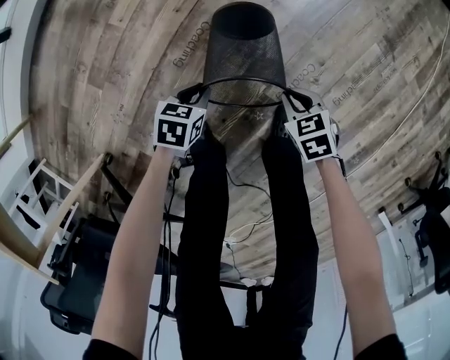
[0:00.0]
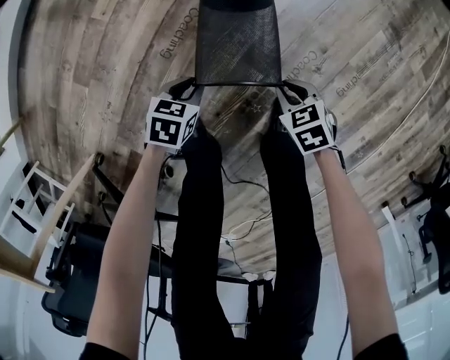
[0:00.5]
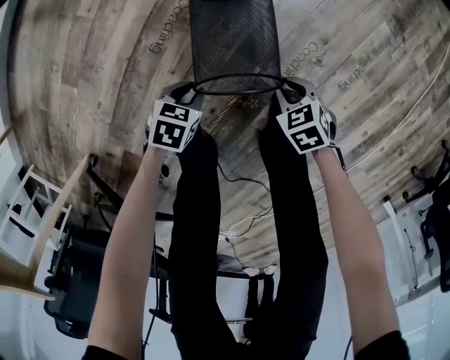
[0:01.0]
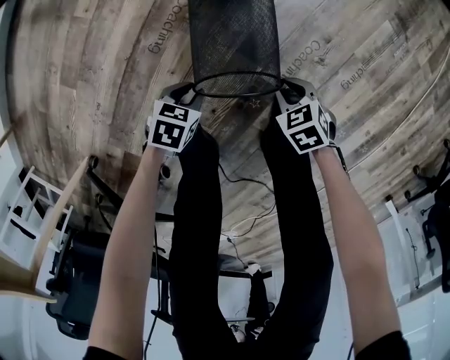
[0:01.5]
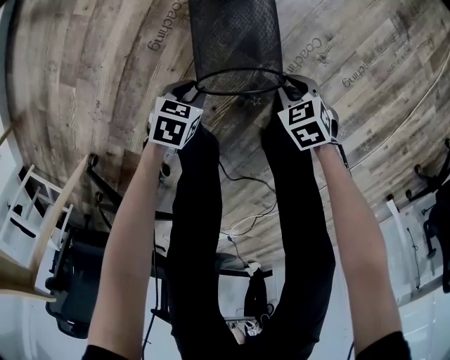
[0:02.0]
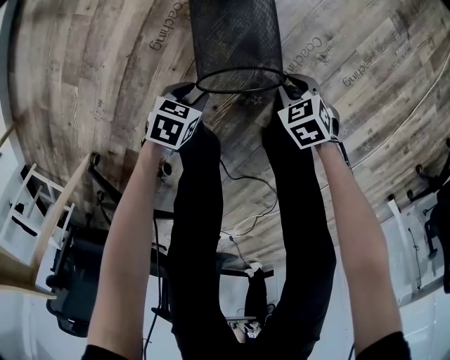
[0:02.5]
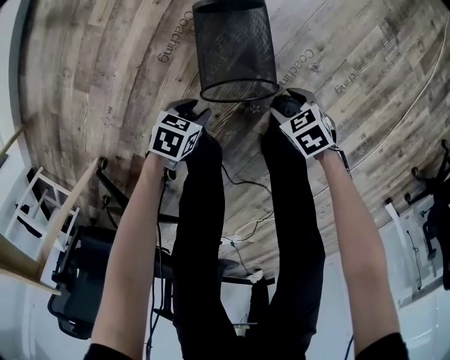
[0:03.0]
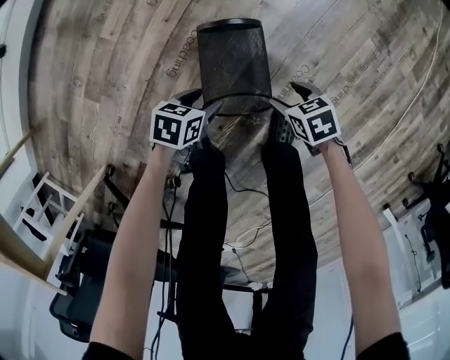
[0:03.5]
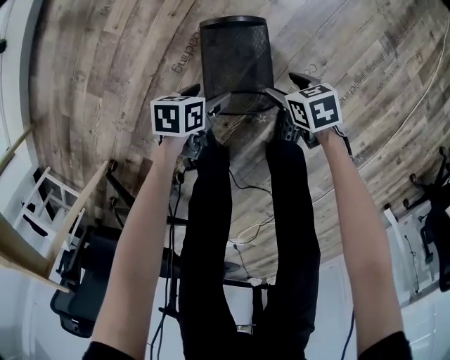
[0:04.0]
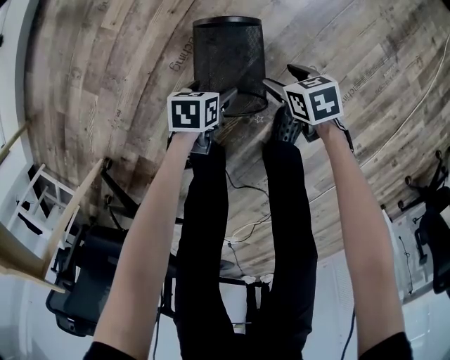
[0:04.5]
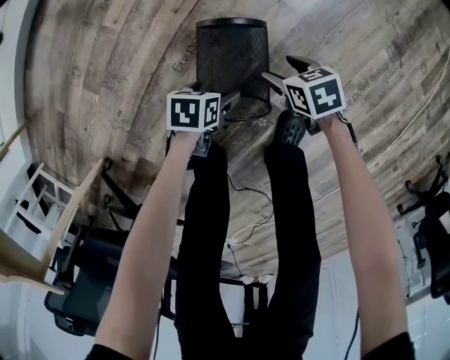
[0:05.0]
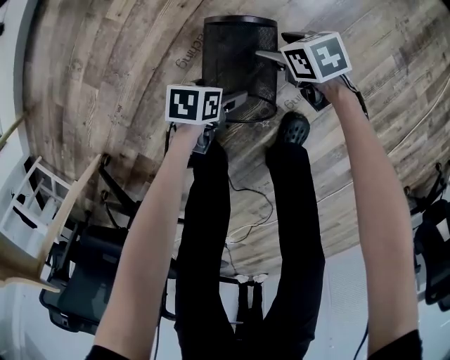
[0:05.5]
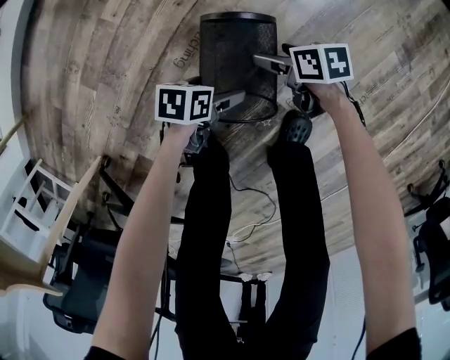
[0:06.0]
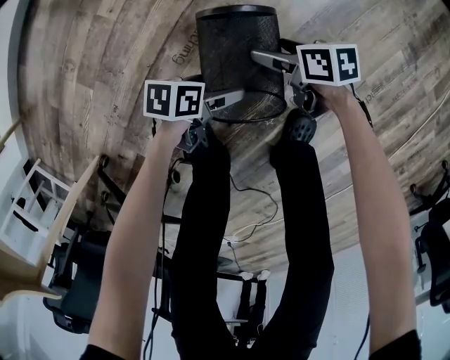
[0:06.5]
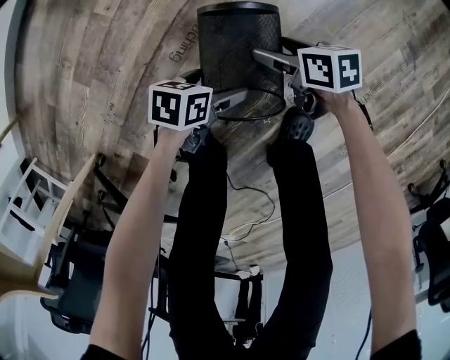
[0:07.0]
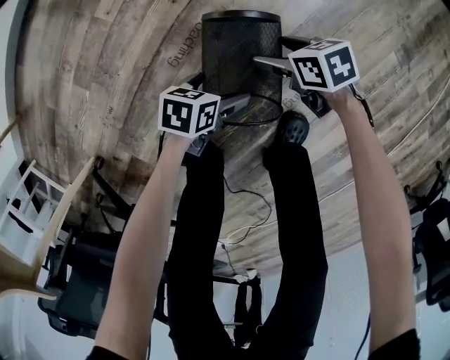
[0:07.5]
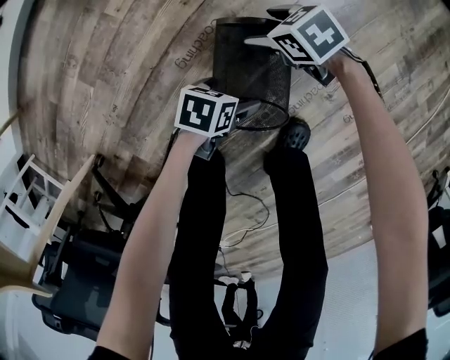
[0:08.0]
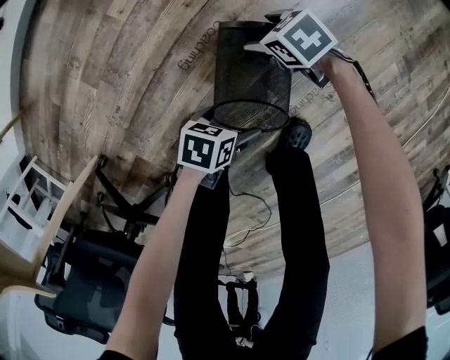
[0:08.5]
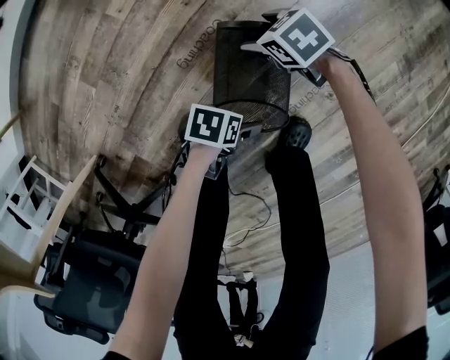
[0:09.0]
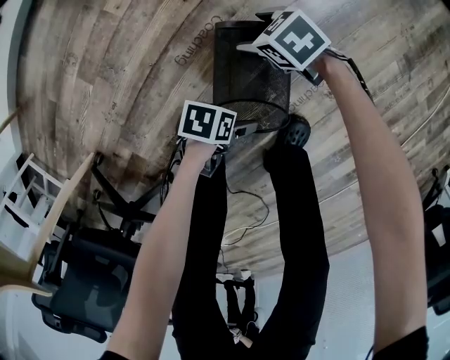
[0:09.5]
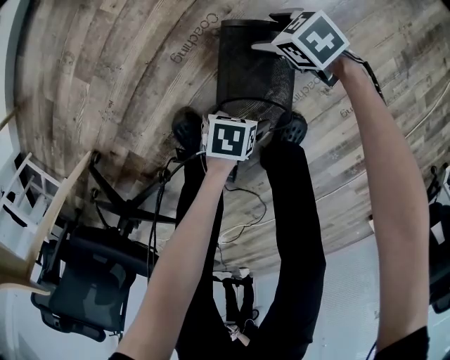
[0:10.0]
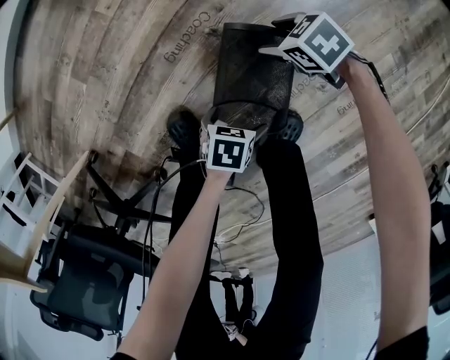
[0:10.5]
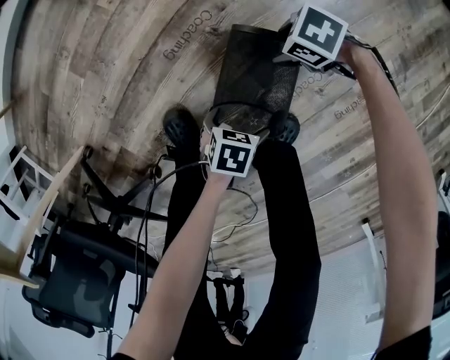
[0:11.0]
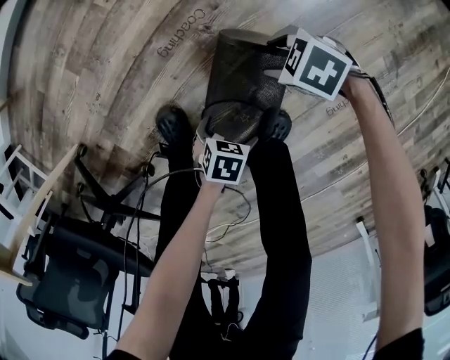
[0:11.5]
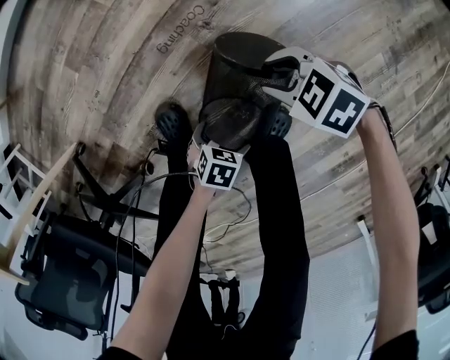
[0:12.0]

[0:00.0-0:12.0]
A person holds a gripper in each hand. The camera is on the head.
0:00.0 to 0:02.0: Both grippers move downward, some 10 cm.
0:02.0 to 0:04.0: The right gripper changes place by approximately 10 cm, swivels roughly 20 degrees, and opens its fingers; the left gripper changes place by approximately 10 cm, swivels roughly 30 degrees, and opens up.
0:04.0 to 0:06.0: The right gripper changes place by about 10 cm.
0:06.0 to 0:08.0: The right gripper ends up roughly 10 cm from where it was, and rotates around the line of its fingers by about 40 degrees, counterclockwise from behind.
0:08.0 to 0:10.0: The left gripper ends up approximately 10 cm from where it was.
0:10.0 to 0:12.0: The right gripper ends up some 15 cm from where it was, turns by some 20 degrees, and closes. The left gripper moves some 10 cm.

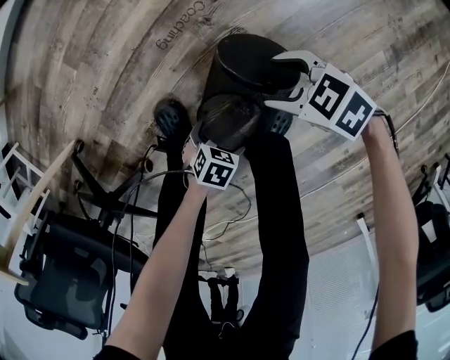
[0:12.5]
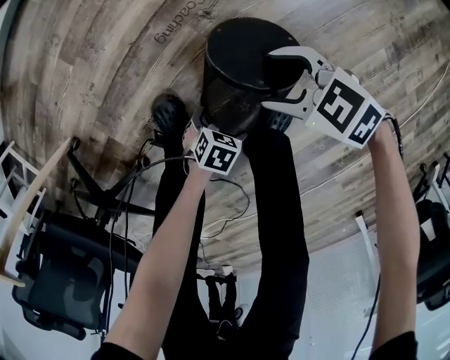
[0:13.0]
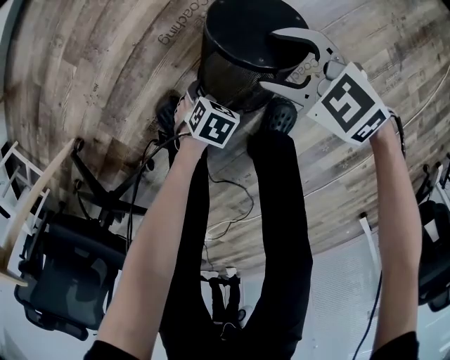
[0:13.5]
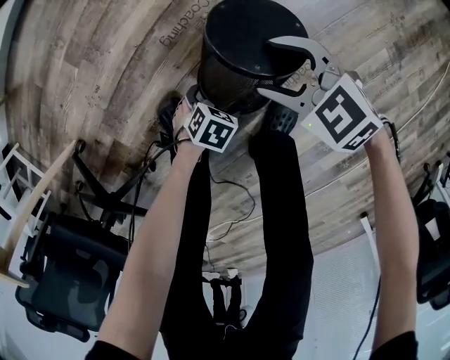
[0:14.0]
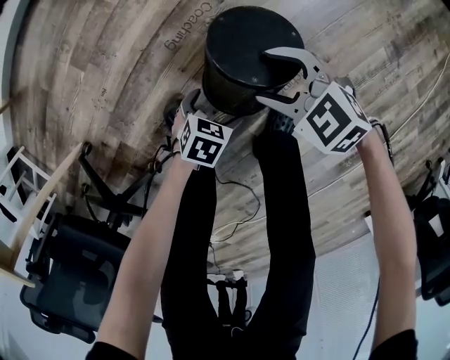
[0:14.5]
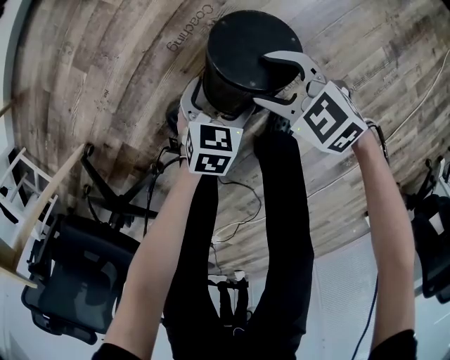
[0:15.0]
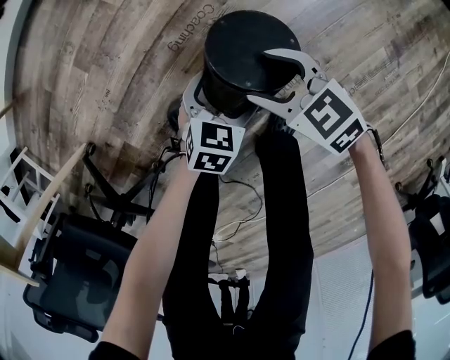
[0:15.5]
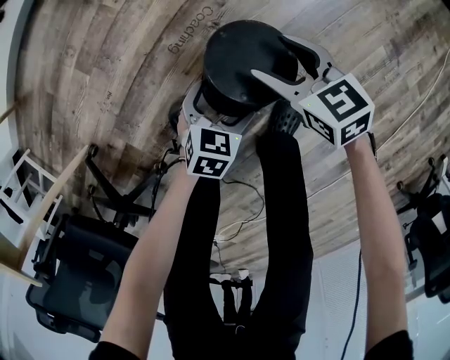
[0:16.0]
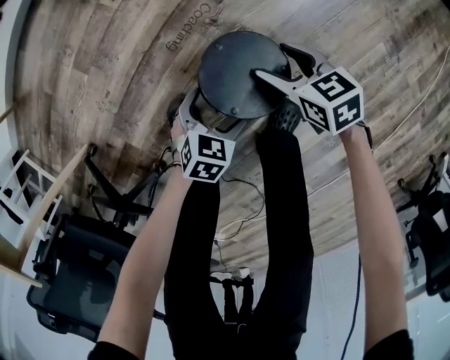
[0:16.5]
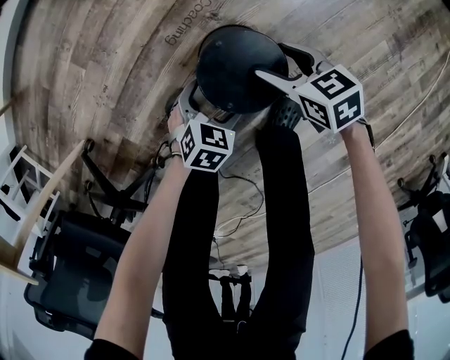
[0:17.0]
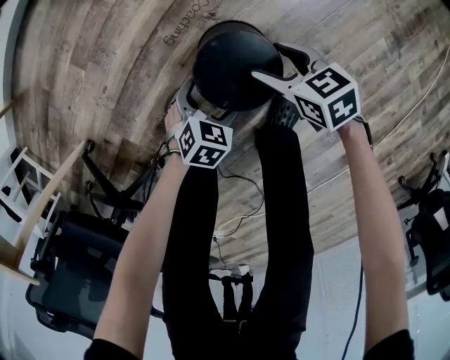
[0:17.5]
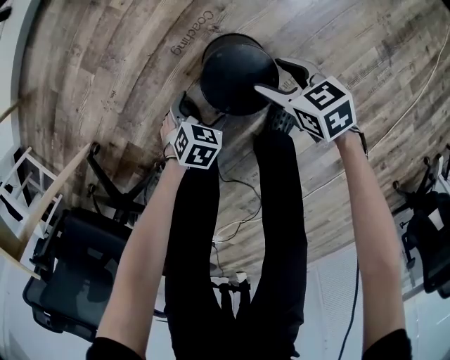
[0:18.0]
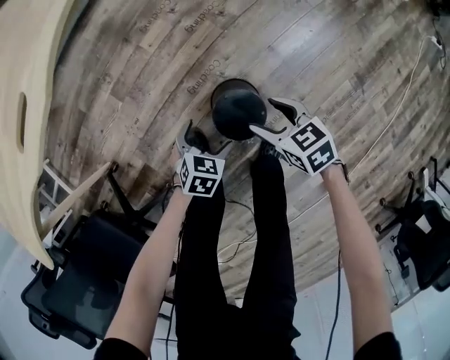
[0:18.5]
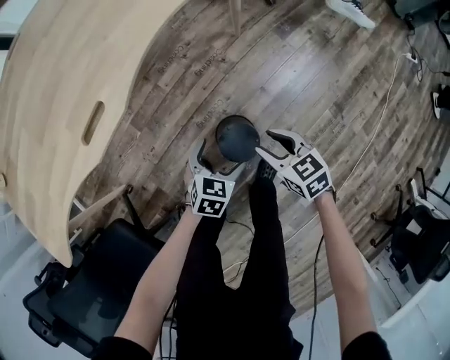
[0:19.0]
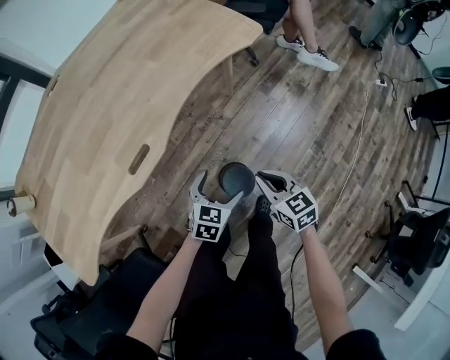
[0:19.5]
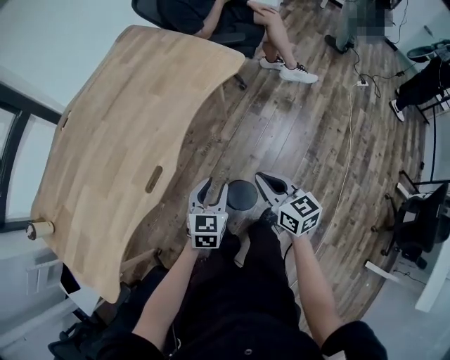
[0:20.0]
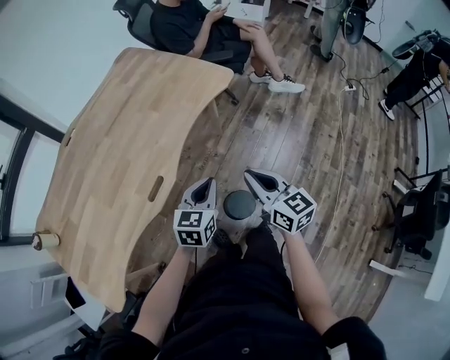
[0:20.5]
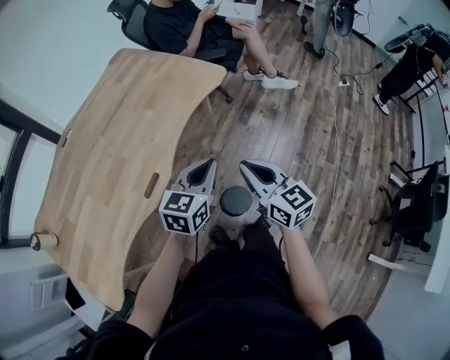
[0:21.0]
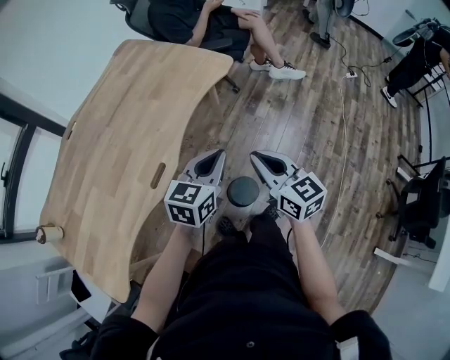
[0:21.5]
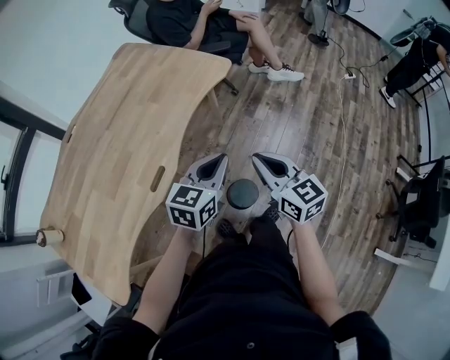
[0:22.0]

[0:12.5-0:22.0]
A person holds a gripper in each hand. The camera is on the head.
0:12.5 to 0:14.5: The left gripper ends up about 10 cm from where it was. Meanwhile the right gripper shifts by roughly 5 cm, and changes its angle by roughly 20 degrees.
0:14.5 to 0:16.5: The right gripper shifts by roughly 5 cm, and turns by approximately 40 degrees.
0:16.5 to 0:18.0: The left gripper changes place by roughly 5 cm.
0:18.0 to 0:20.0: Both grippers travel together upward, roughly 60 cm. The right gripper swivels roughly 50 degrees, and closes. Meanwhile the left gripper tilts its fingers roughly 40 degrees upward, and closes up.
0:20.0 to 0:22.0: Both grippers travel together upward, approximately 10 cm. The left gripper turns by some 20 degrees.

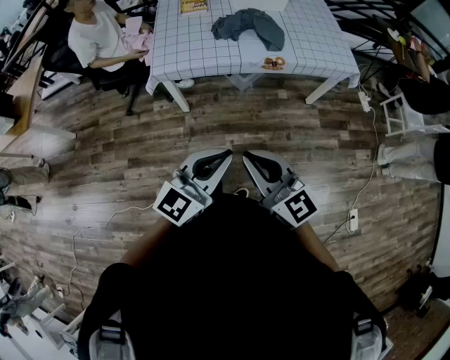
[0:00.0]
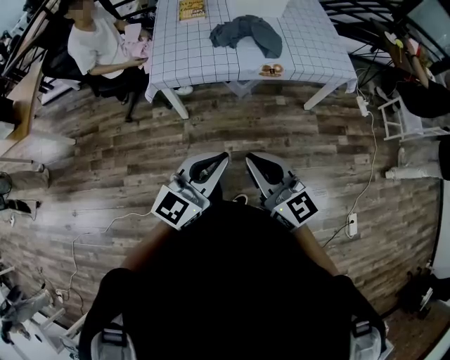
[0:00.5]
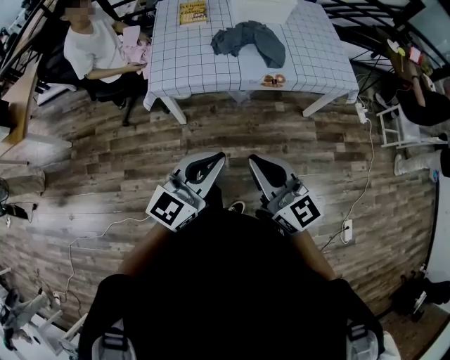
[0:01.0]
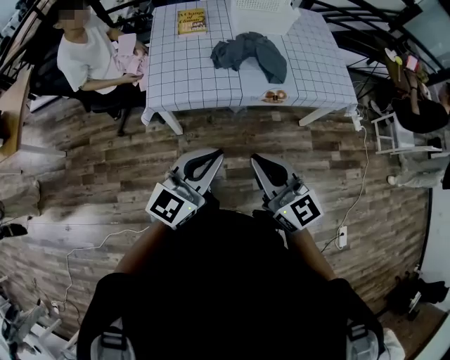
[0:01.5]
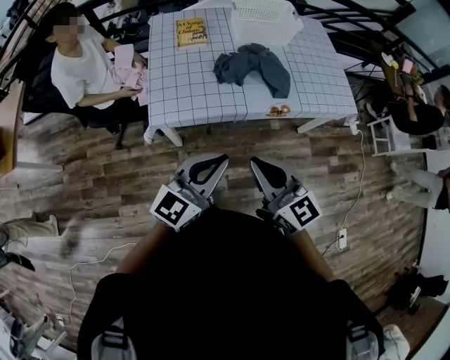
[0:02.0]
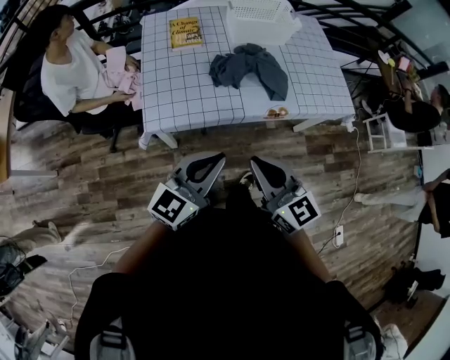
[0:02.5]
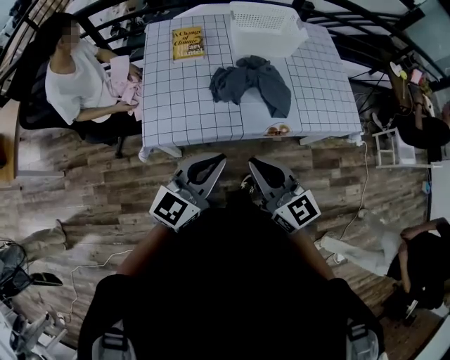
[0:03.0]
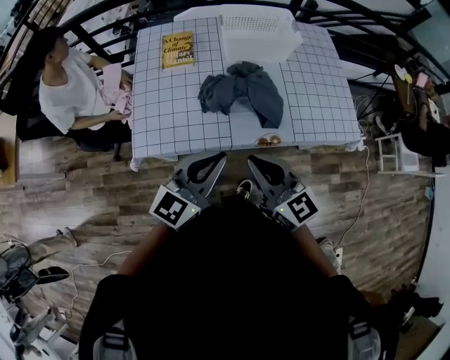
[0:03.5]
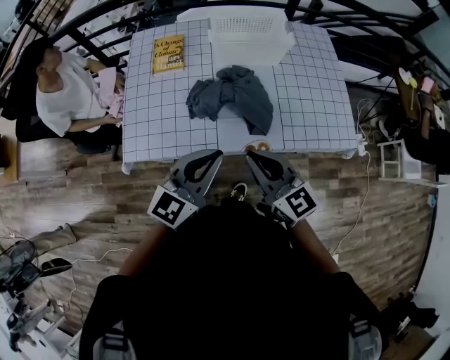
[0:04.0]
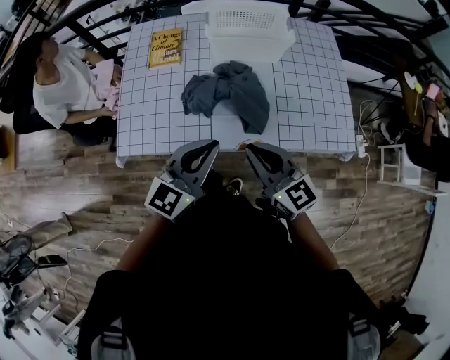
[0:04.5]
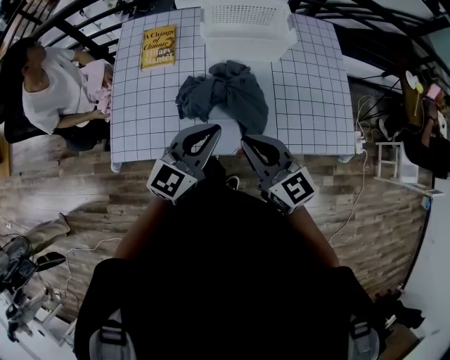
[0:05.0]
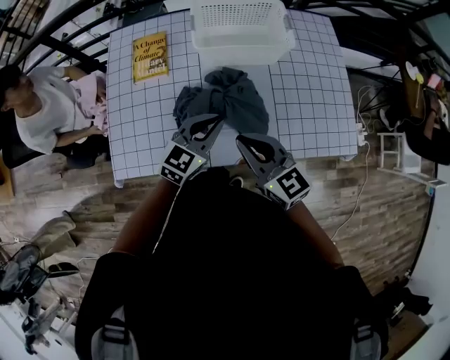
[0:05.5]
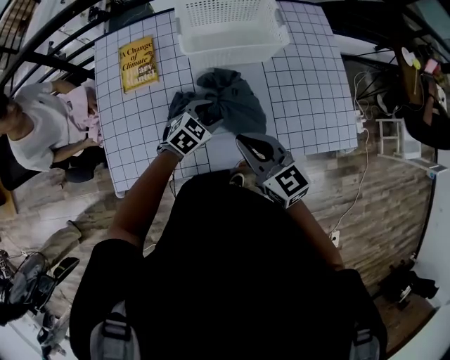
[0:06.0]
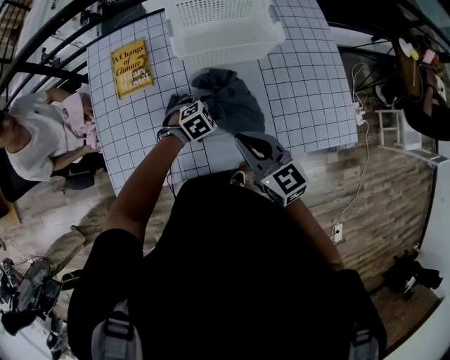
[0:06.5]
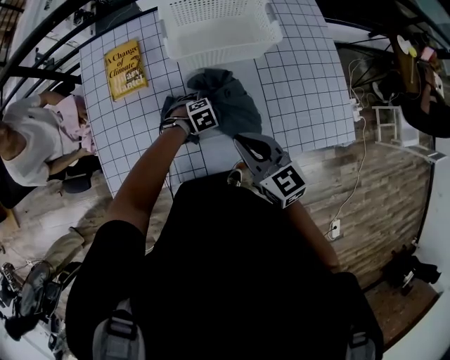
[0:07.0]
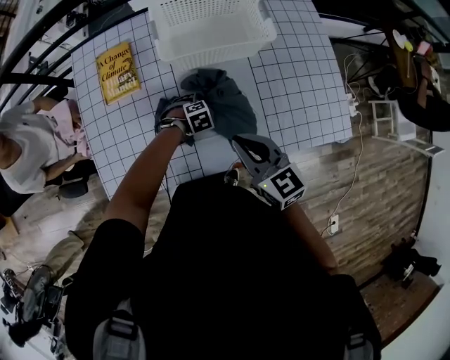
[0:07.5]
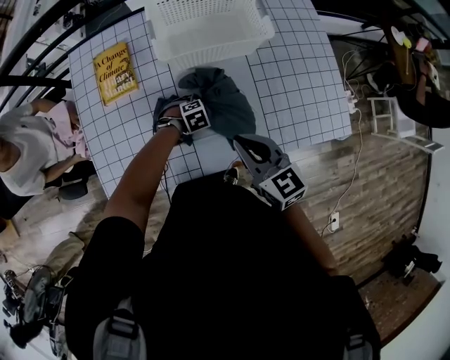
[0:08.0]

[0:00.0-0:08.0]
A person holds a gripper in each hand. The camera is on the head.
0:00.0 to 0:02.0: The right gripper heads forward, covering about 25 cm; the left gripper moves forward and to the left, some 25 cm.
0:02.0 to 0:04.0: The two grippers go roughly 30 cm forward and to the right.
0:04.0 to 0:06.0: The left gripper heads forward and downward, covering about 35 cm, angles its fingers downward, by about 40 degrees, and opens up. The right gripper travels forward and downward by roughly 20 cm.
0:06.0 to 0:08.0: The left gripper is displaced downward by about 15 cm, and changes its angle by roughly 40 degrees.
